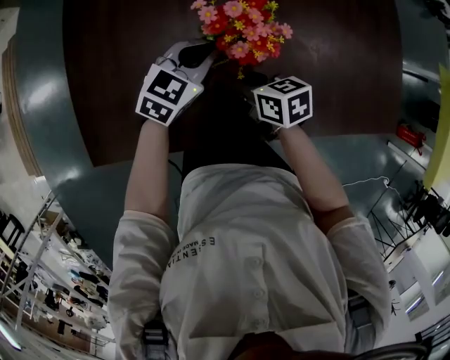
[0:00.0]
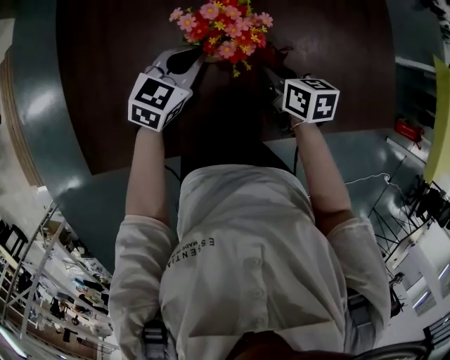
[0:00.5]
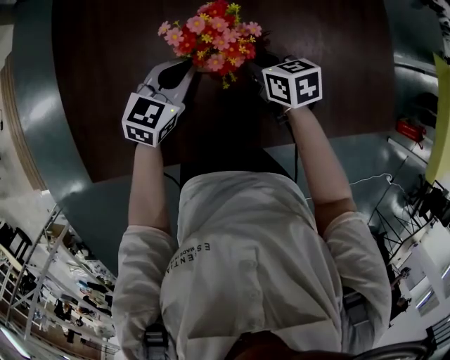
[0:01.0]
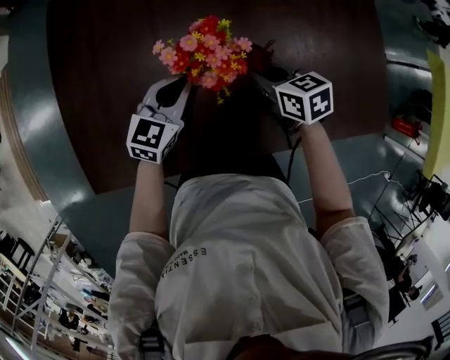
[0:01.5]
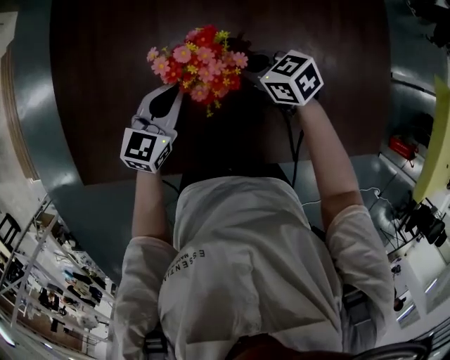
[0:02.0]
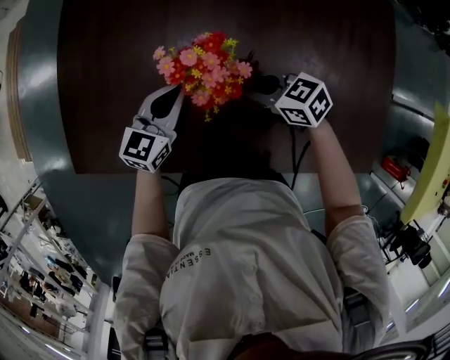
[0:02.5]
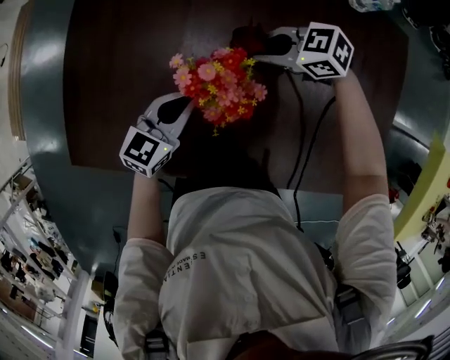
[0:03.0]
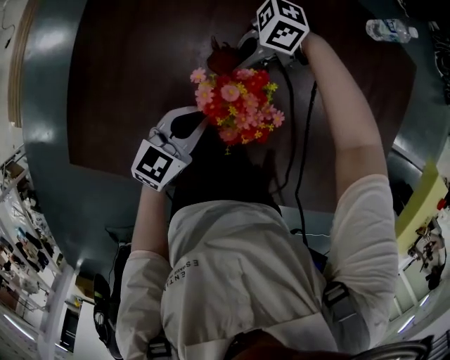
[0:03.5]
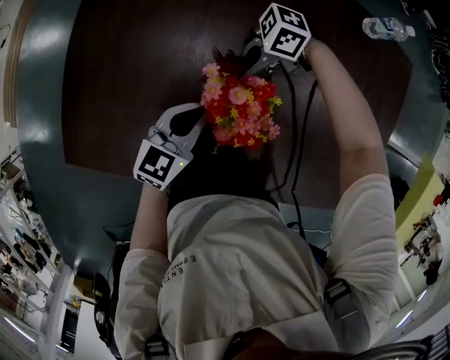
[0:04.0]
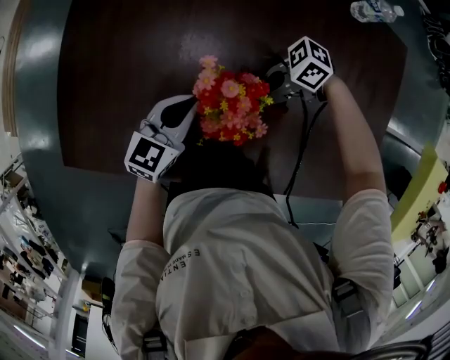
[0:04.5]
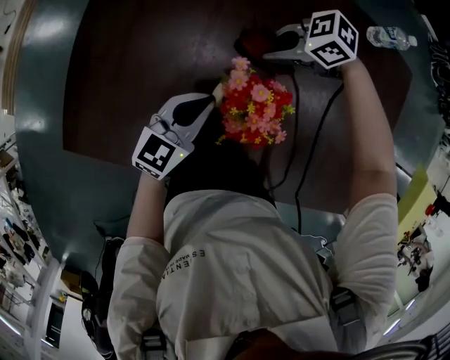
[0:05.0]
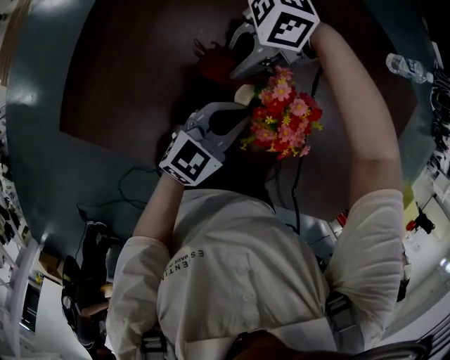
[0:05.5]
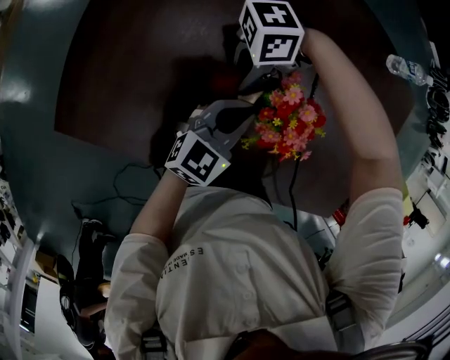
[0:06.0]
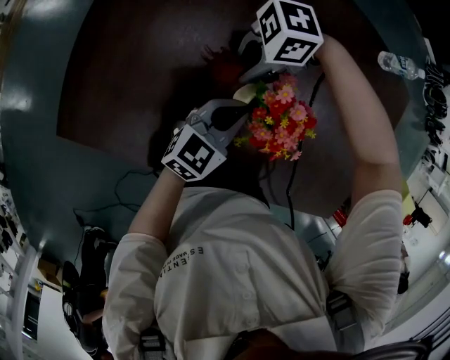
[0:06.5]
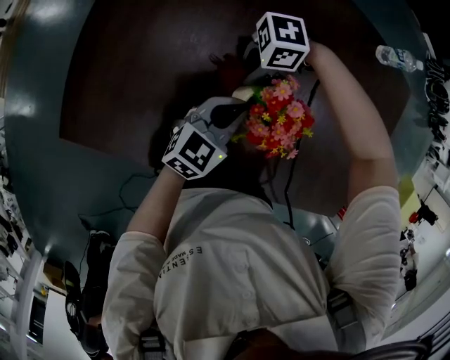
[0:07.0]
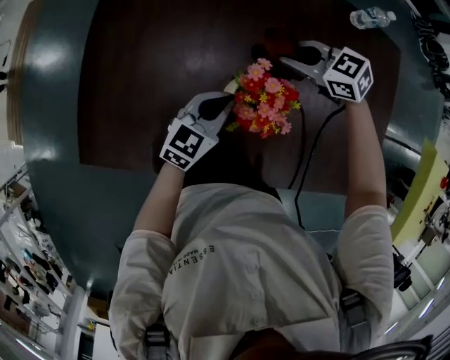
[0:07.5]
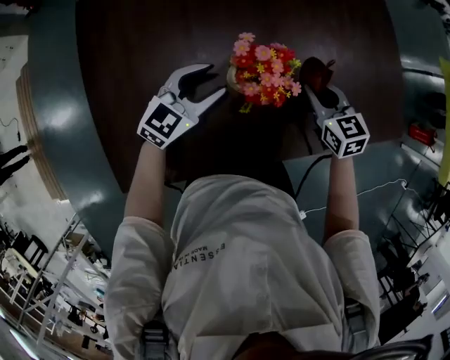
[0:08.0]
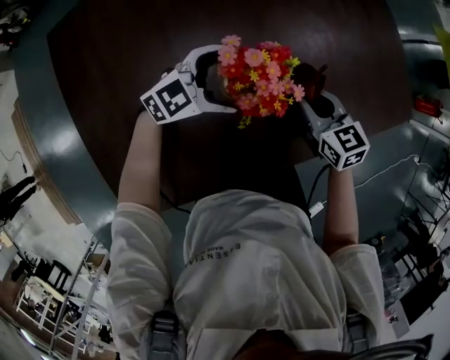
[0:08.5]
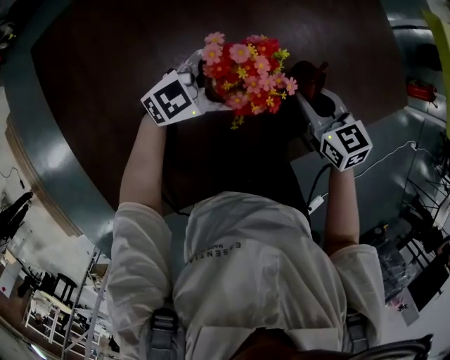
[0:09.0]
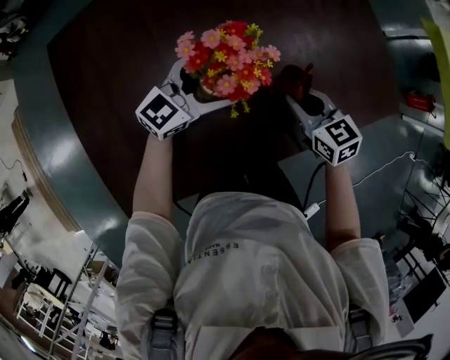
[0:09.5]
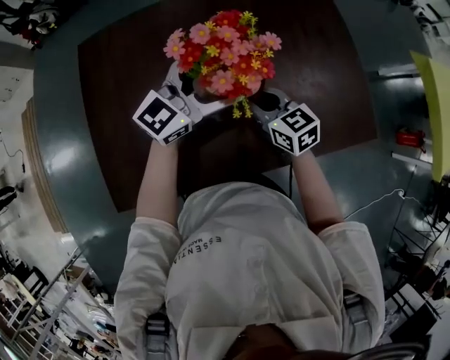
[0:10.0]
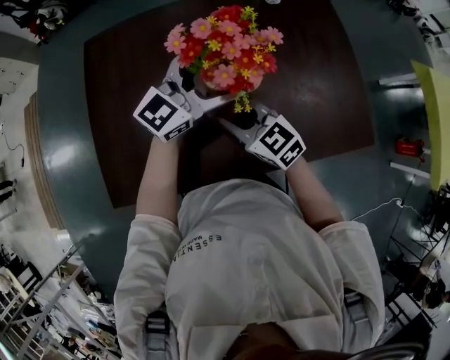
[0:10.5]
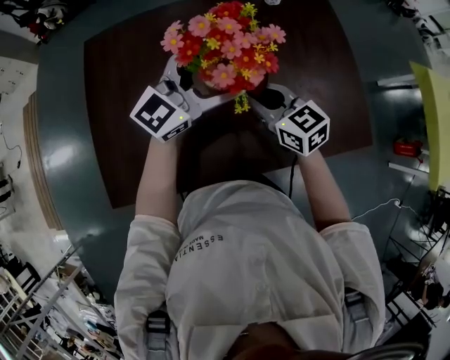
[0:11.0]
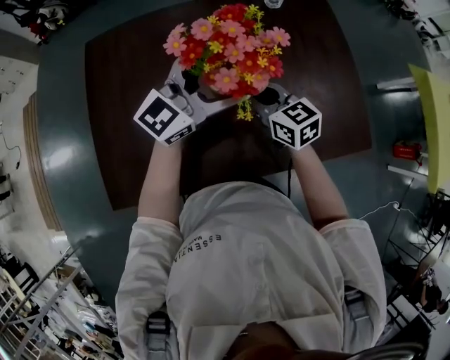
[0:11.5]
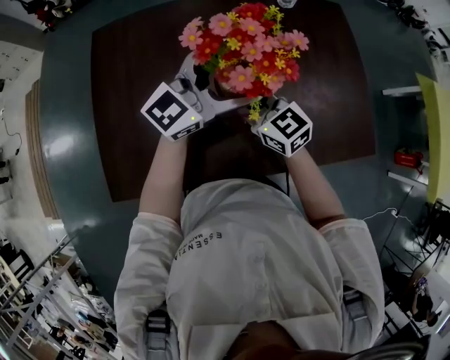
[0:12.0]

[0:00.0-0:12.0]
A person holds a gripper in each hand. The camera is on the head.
0:00.0 to 0:02.0: The left gripper changes its angle by roughly 20 degrees. The right gripper moves roughly 15 cm, and changes its angle by approximately 30 degrees.
0:02.0 to 0:04.0: The right gripper changes place by approximately 10 cm, and rotates some 70 degrees.
0:04.0 to 0:06.0: The right gripper ends up approximately 10 cm from where it was, and swivels roughly 30 degrees.
0:06.0 to 0:08.0: The left gripper turns by approximately 40 degrees; the right gripper changes place by some 25 cm, and turns by approximately 130 degrees.
0:08.0 to 0:10.0: The right gripper moves upward, about 10 cm. The left gripper shifts approximately 20 cm upward, changes its angle by roughly 20 degrees, and opens.
0:10.0 to 0:12.0: The right gripper shifts approximately 5 cm to the left, and reaches some 5 cm backward, then returns.

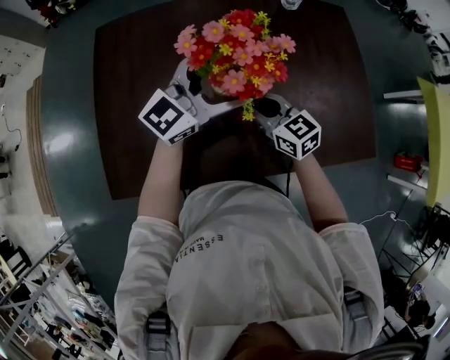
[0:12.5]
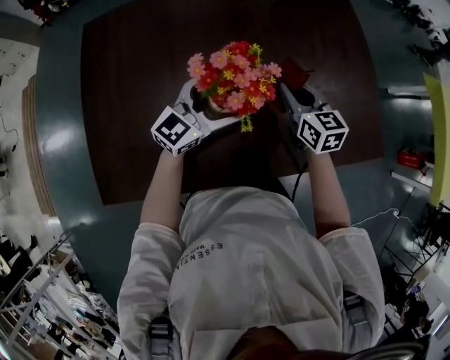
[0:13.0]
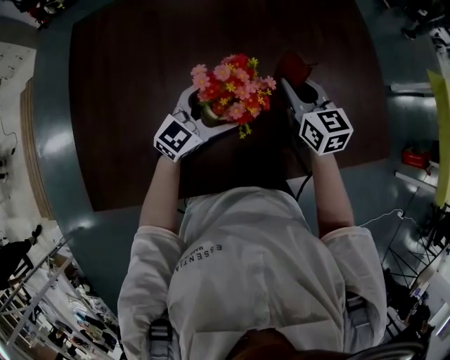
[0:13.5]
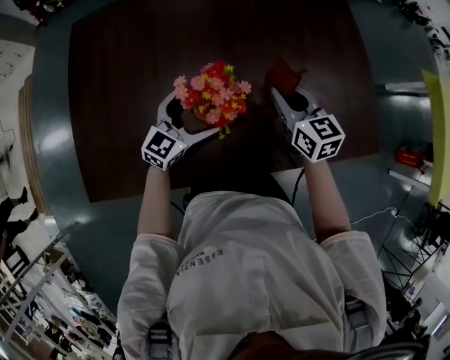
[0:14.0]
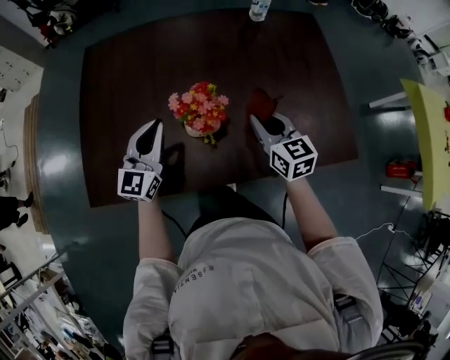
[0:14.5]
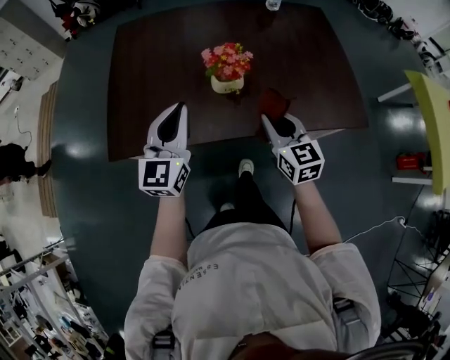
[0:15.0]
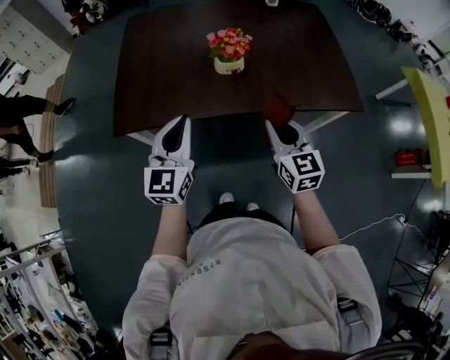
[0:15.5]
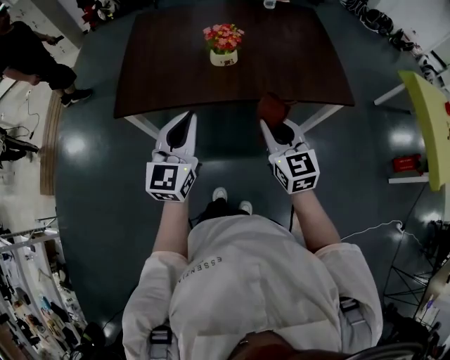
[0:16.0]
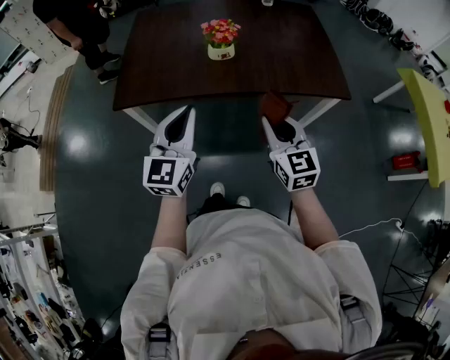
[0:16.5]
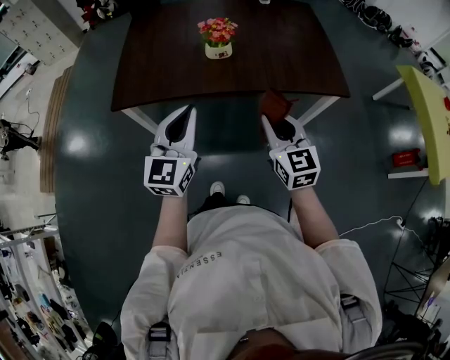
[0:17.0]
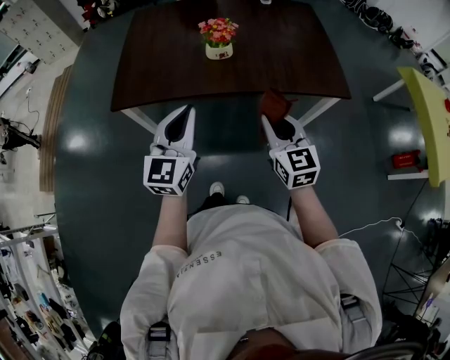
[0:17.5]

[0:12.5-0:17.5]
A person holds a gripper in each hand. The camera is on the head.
0:12.5 to 0:15.0: The left gripper shifts roughly 25 cm backward, swivels roughly 40 degrees, and closes its fingers; the right gripper heads backward and to the right, covering some 20 cm, and swivels some 20 degrees.
0:15.0 to 0:17.5: Both grippers move backward, approximately 20 cm.

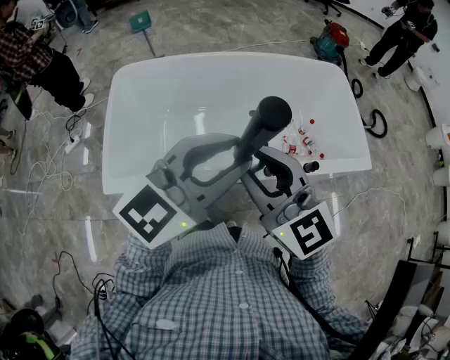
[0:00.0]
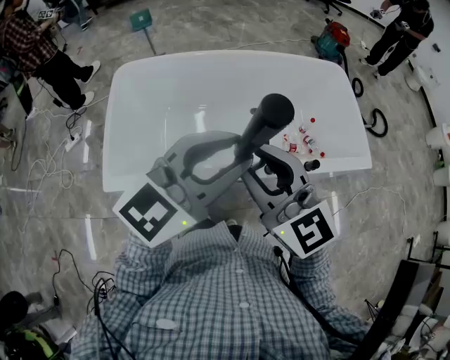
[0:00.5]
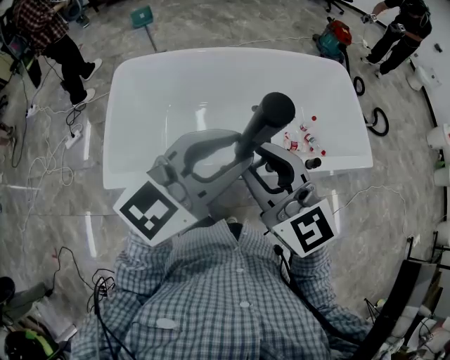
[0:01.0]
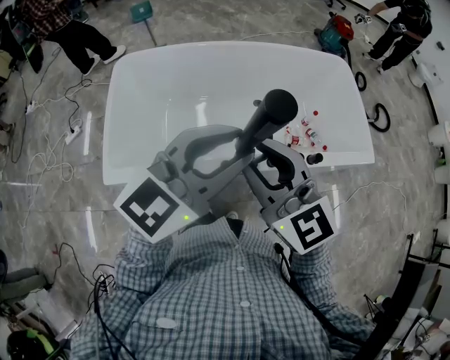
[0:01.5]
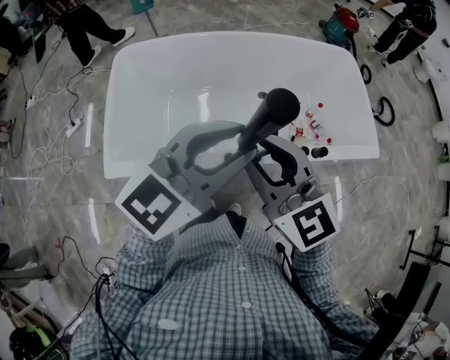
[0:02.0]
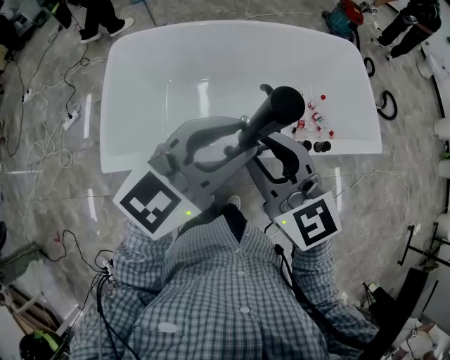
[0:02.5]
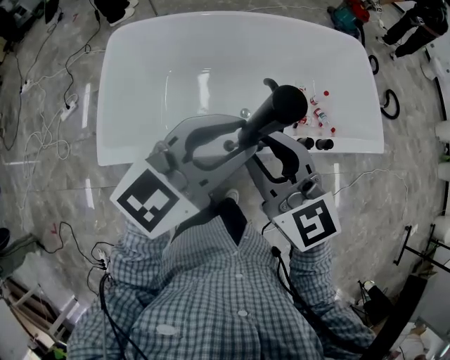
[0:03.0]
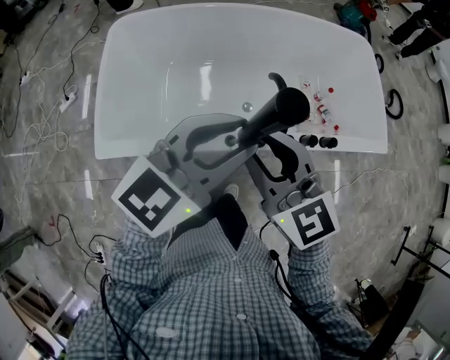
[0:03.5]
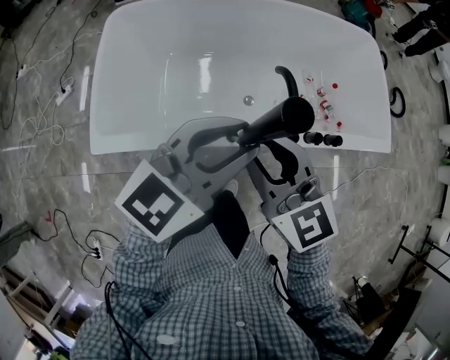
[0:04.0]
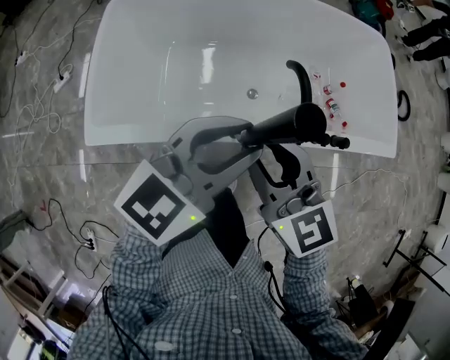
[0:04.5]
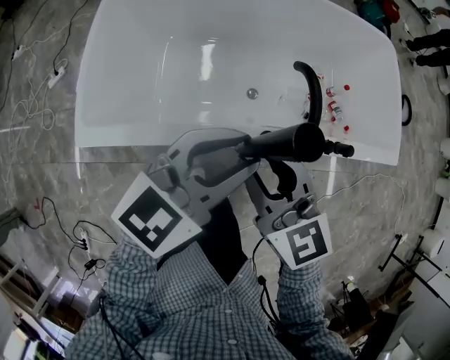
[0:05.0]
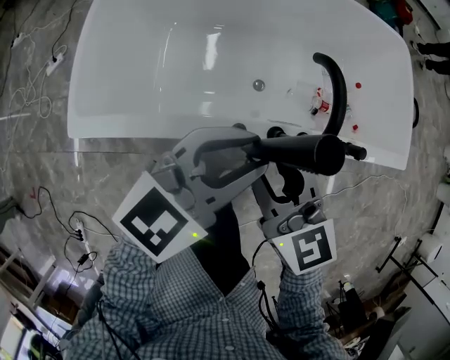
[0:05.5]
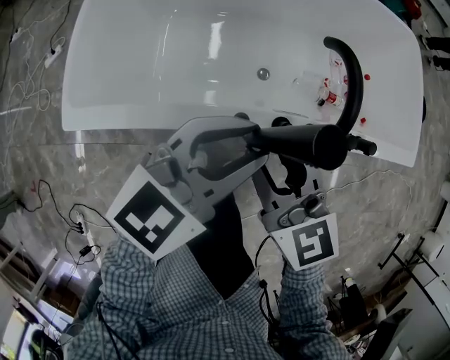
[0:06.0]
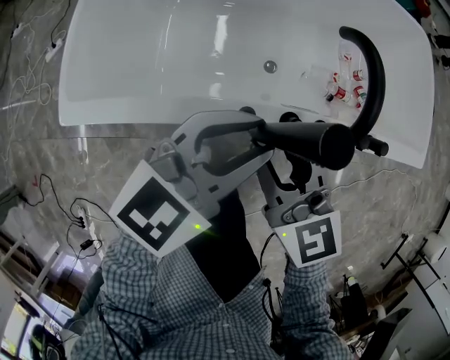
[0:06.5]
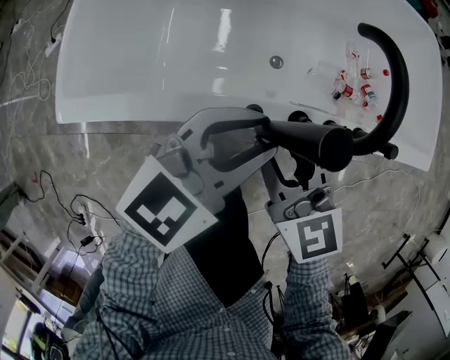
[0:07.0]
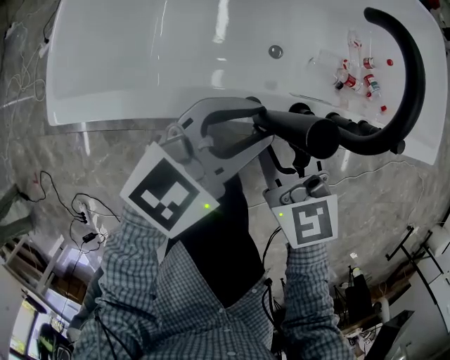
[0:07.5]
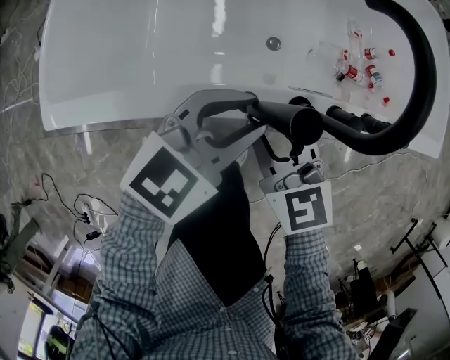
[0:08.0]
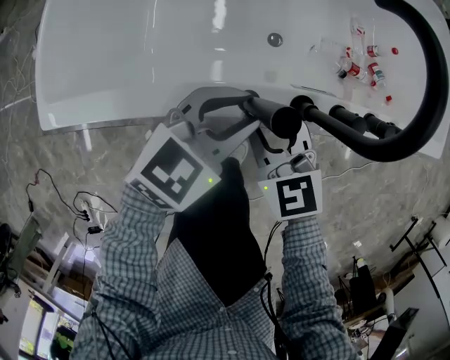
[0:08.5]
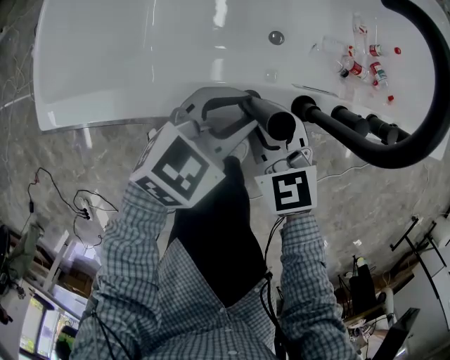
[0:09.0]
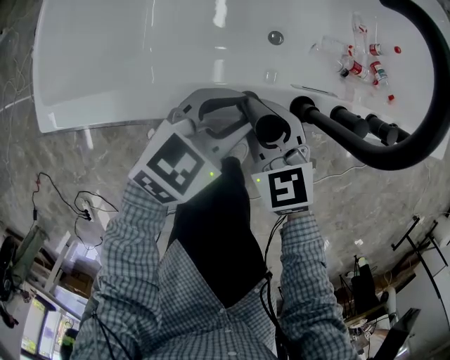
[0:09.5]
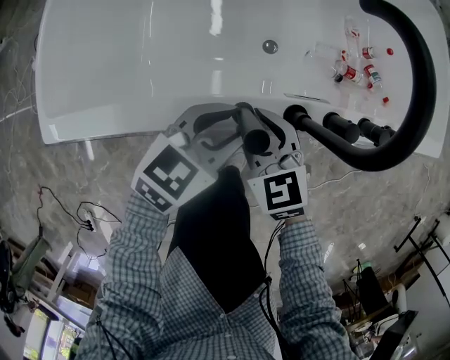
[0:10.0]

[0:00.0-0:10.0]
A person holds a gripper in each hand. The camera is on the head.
0:00.0 to 0:02.0: The two grippers keep their place.
0:02.0 to 0:04.0: Both grippers move downward, approximately 10 cm.
0:04.0 to 0:06.0: Both grippers move downward, roughly 20 cm.
0:06.0 to 0:08.0: Both grippers travel together downward, roughly 15 cm.
0:08.0 to 0:10.0: Both grippers move downward, approximately 5 cm.
